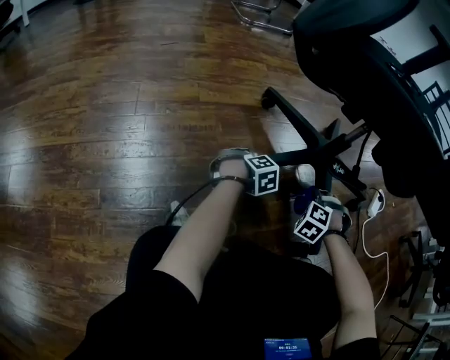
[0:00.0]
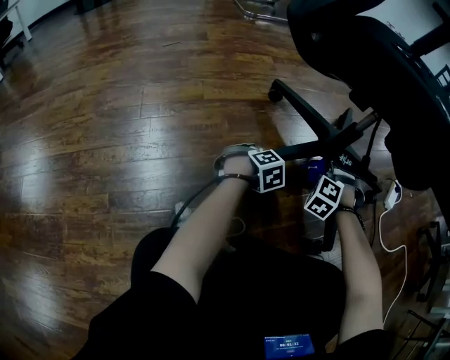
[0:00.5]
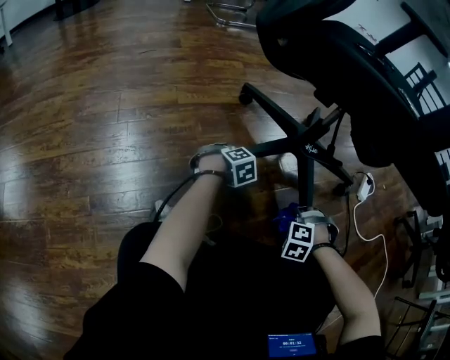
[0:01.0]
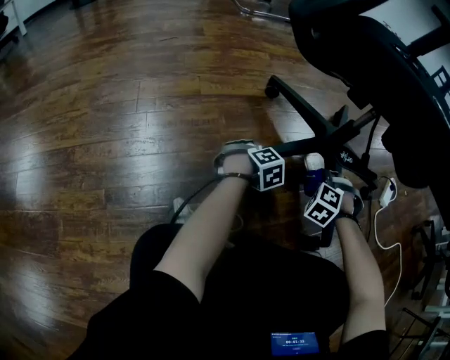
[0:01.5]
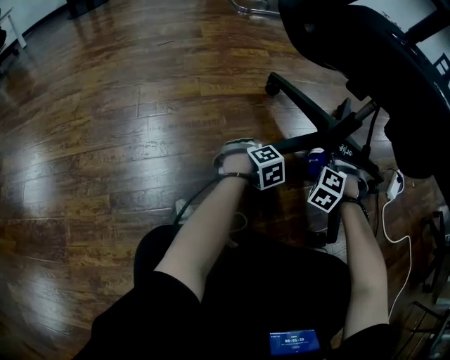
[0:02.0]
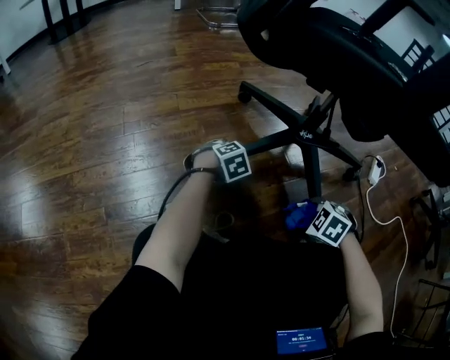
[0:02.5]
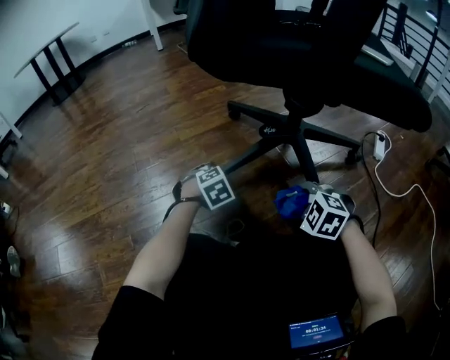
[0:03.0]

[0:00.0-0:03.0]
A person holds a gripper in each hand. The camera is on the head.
0:01.5 to 0:03.0: The right gripper shifts by approximately 20 cm, and turns by about 40 degrees.

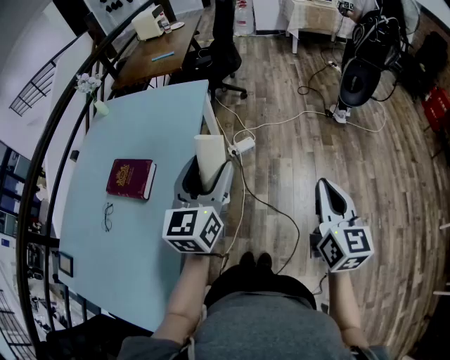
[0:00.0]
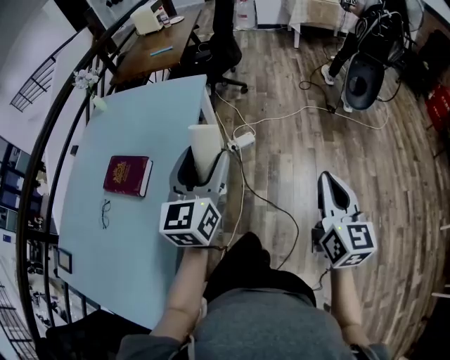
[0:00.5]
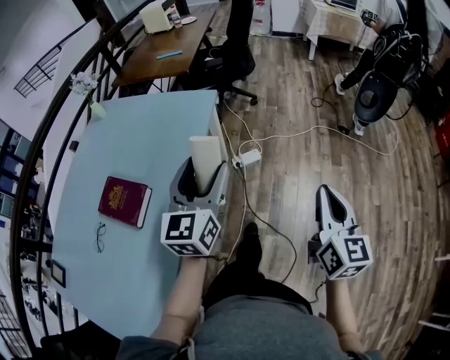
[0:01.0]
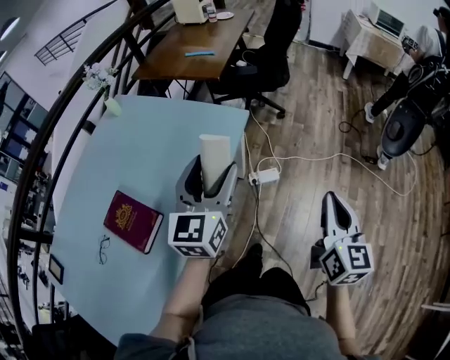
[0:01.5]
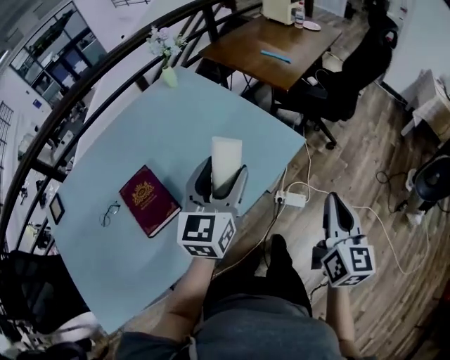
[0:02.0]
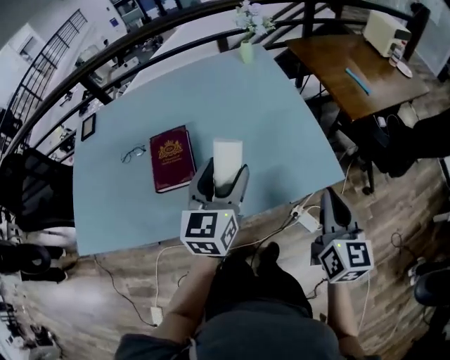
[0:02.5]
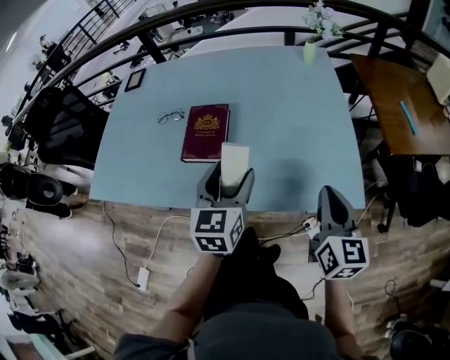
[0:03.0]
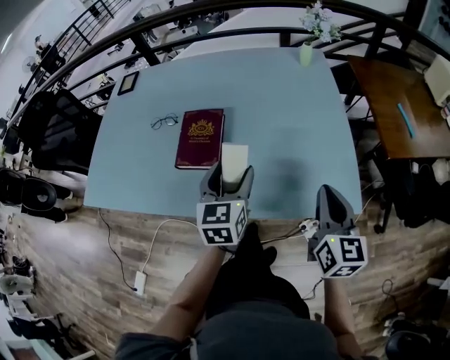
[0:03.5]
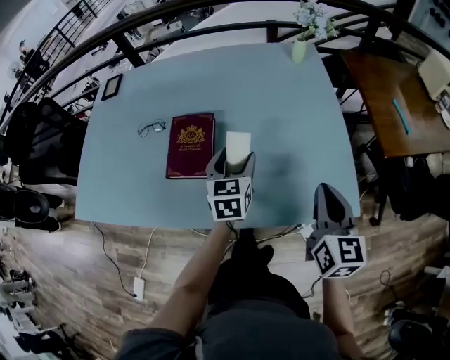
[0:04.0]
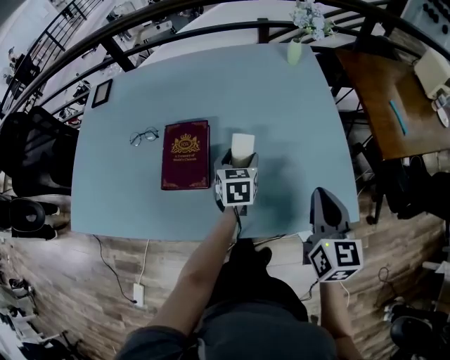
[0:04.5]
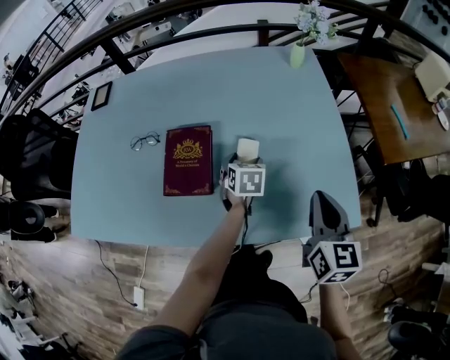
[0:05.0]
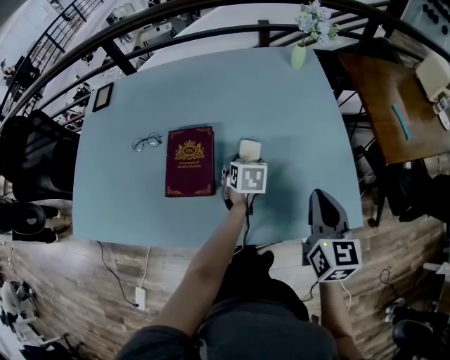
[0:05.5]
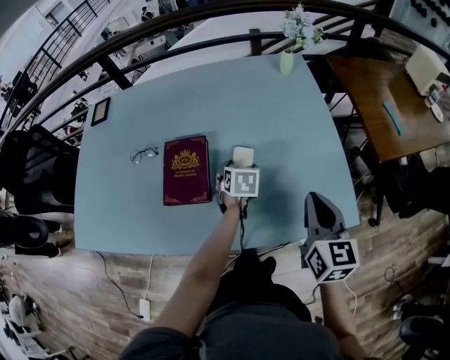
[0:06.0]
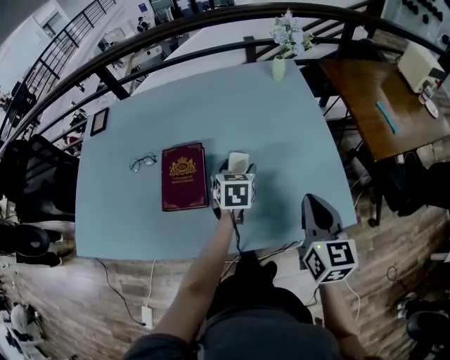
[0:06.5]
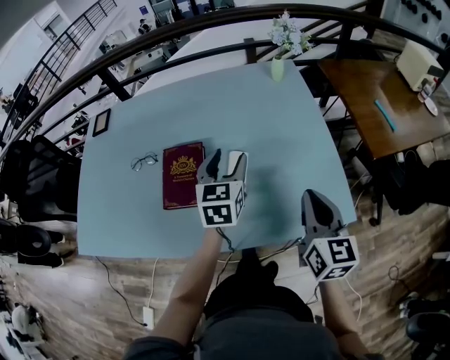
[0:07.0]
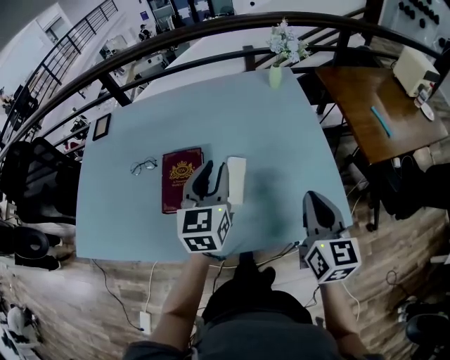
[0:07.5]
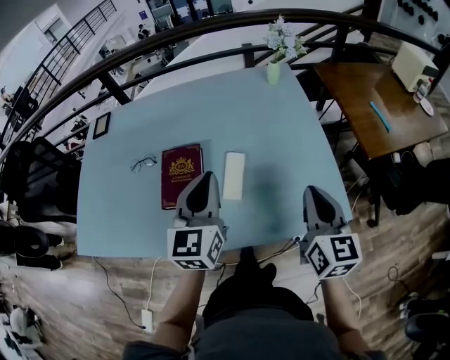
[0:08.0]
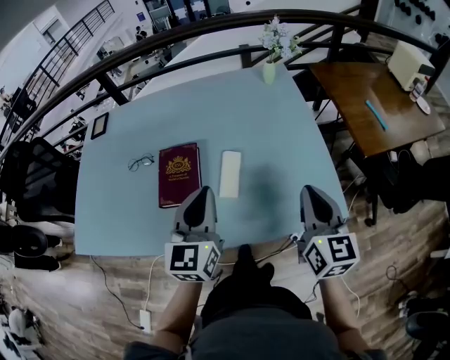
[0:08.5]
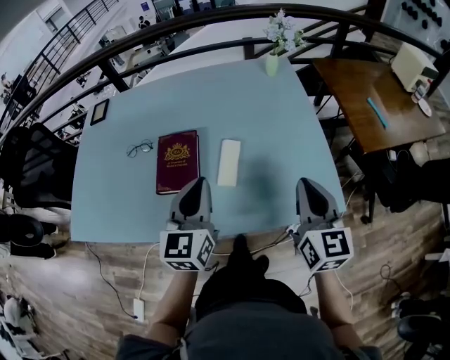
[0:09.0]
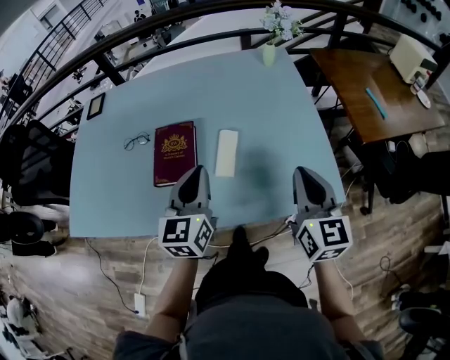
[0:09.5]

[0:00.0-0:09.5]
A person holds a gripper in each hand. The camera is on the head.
0:00.0 to 0:02.0: The right gripper changes place by approximately 50 cm, and turns by roughly 30 degrees, while the left gripper moves about 35 cm, and turns by about 40 degrees.
0:02.0 to 0:04.0: The left gripper shifts by approximately 20 cm, and rotates some 50 degrees. The right gripper changes place by some 25 cm, and changes its angle by roughly 50 degrees.
0:04.0 to 0:05.5: The left gripper moves downward and forward, approximately 15 cm, and rotates some 30 degrees.
0:05.5 to 0:07.5: The left gripper heads upward, covering some 25 cm, tilts its fingers some 40 degrees upward, and closes.
0:07.5 to 0:09.5: The left gripper travels backward by some 10 cm, and closes.

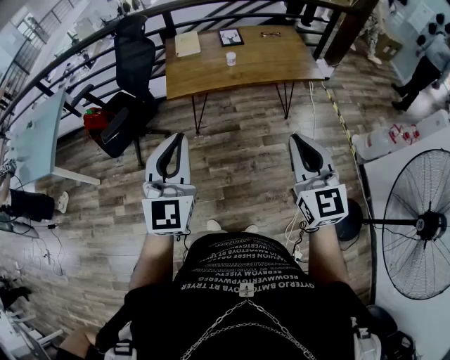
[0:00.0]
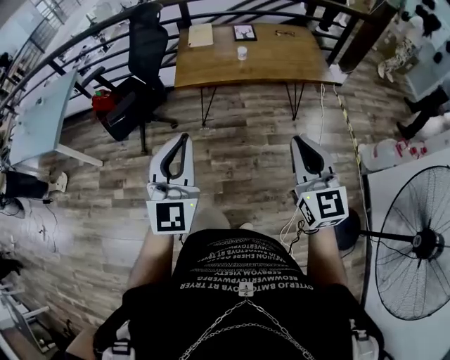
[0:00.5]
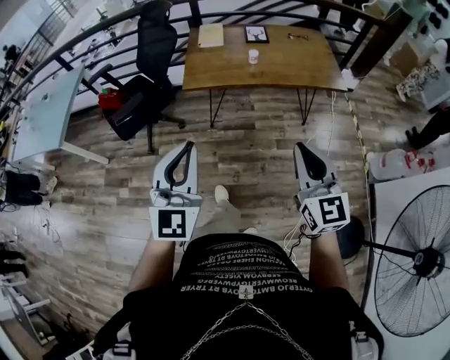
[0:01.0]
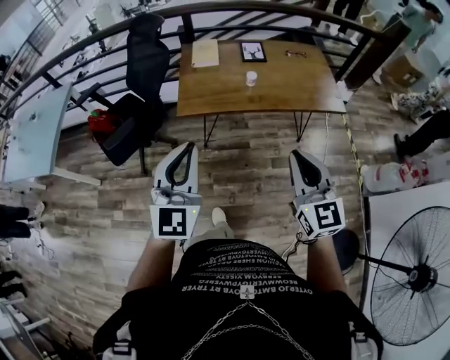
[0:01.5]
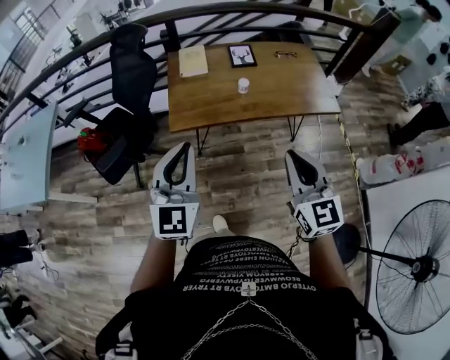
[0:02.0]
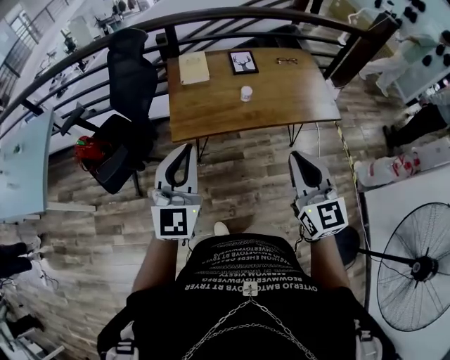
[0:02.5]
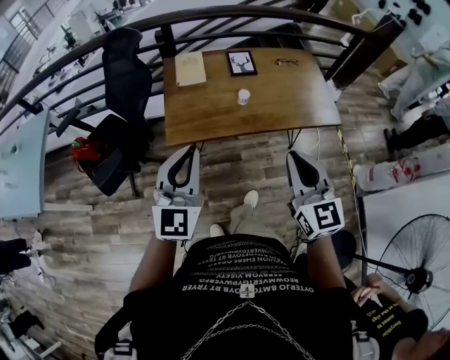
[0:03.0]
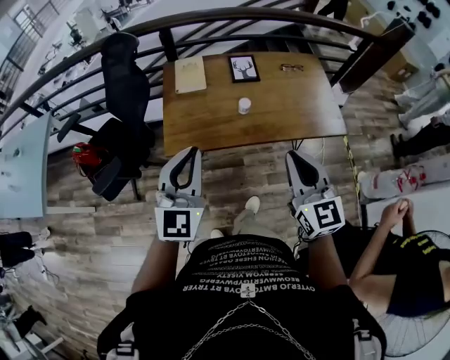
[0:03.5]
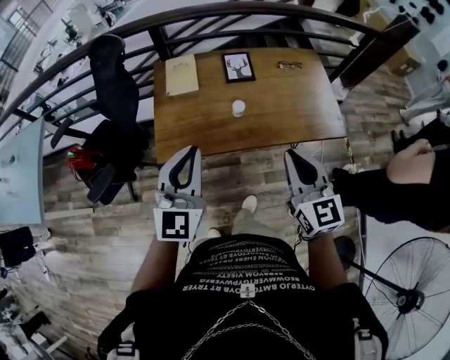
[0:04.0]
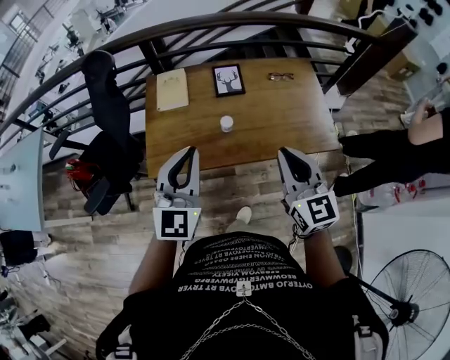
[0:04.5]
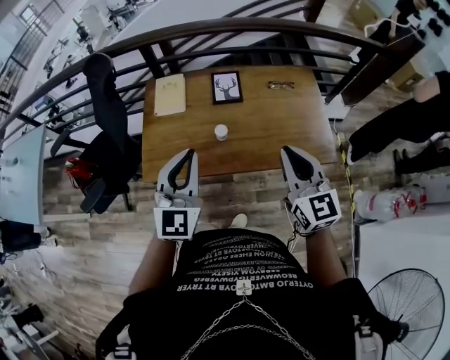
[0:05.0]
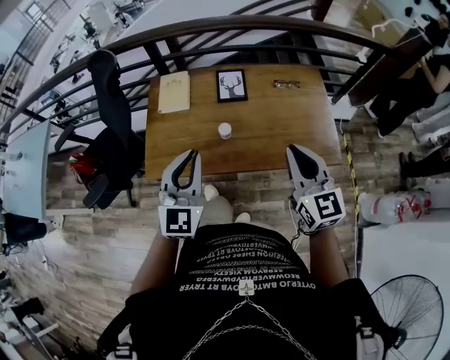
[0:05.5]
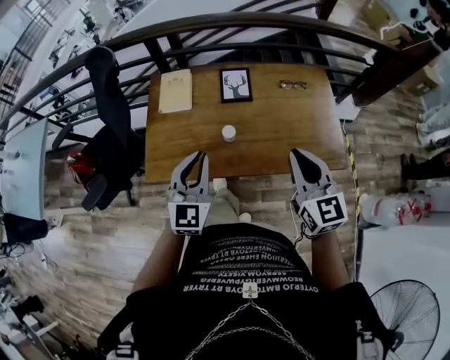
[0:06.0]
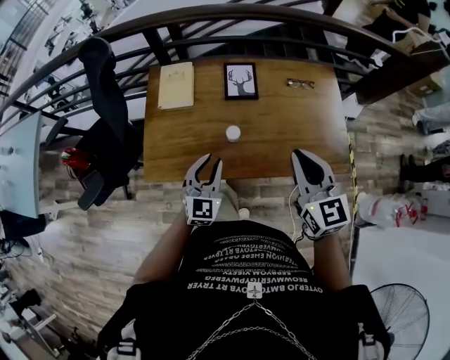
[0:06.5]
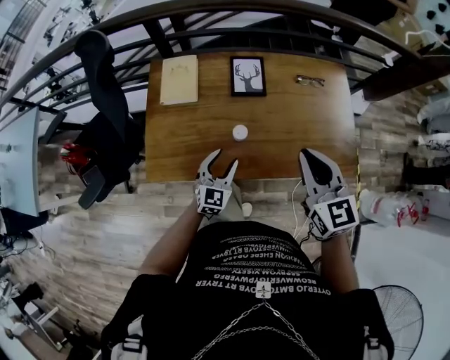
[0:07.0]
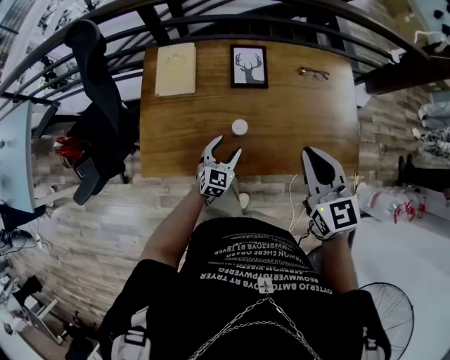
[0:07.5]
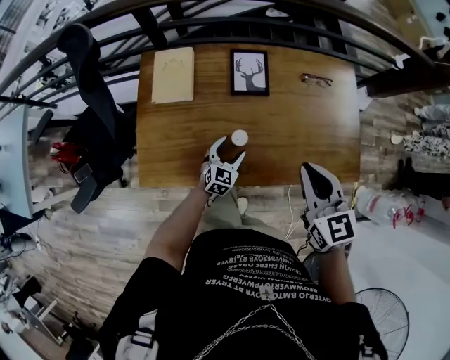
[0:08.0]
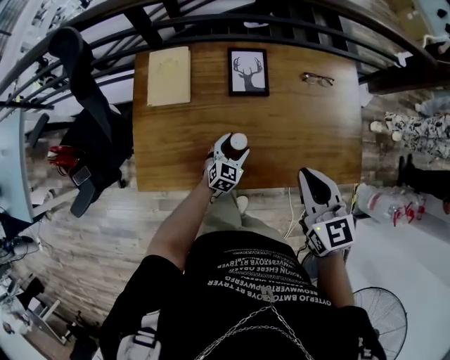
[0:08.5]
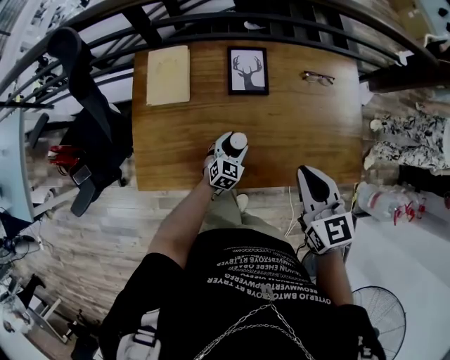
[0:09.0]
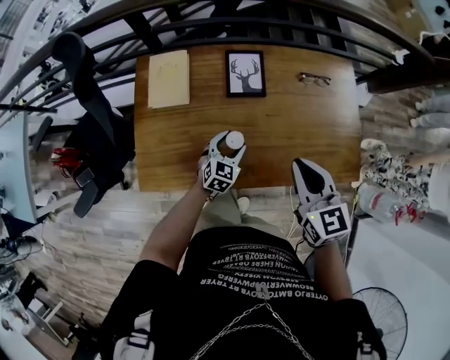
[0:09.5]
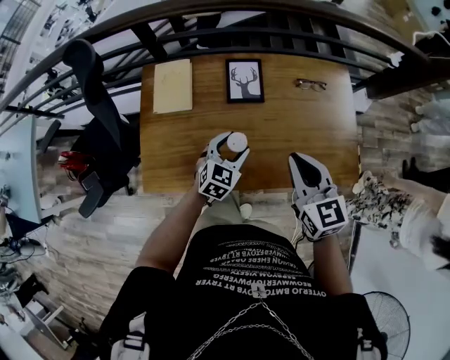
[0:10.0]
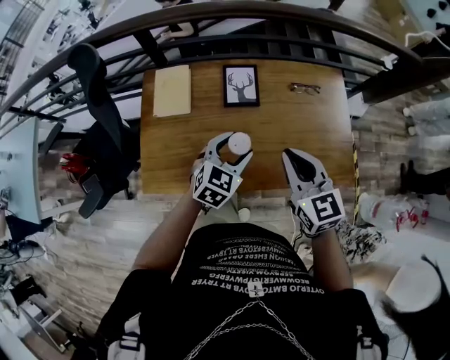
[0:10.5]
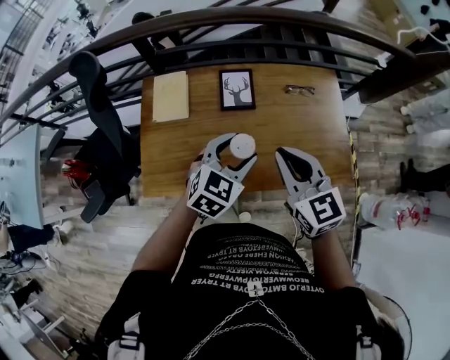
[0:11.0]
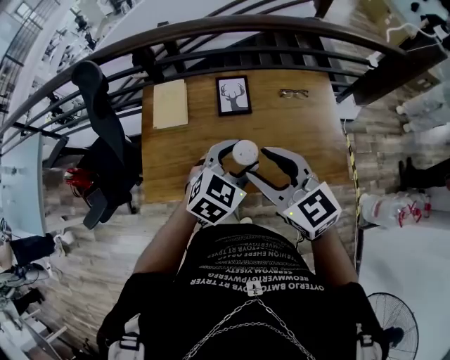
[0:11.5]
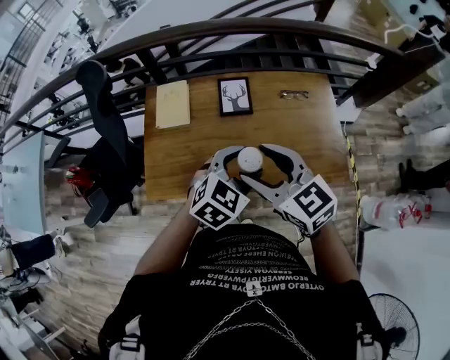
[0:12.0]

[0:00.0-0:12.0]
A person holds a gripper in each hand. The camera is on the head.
0:00.0 to 0:02.0: Both grippers move forward, roughly 20 cm.
0:02.0 to 0:04.0: The grippers both shift forward by some 20 cm.
0:04.0 to 0:06.0: The left gripper travels forward, to the right and downward by roughly 15 cm; the right gripper goes approximately 15 cm forward and to the right.
0:06.0 to 0:08.0: The left gripper is displaced downward by about 35 cm, turns by about 30 degrees, and opens up; the right gripper is displaced forward and downward by approximately 10 cm.
0:08.0 to 0:10.0: The left gripper goes approximately 15 cm upward.
0:10.0 to 0:12.0: The left gripper heads upward and backward, covering about 20 cm. Meanwhile the right gripper travels upward, to the left and backward by roughly 15 cm, turns by about 20 degrees, and opens.

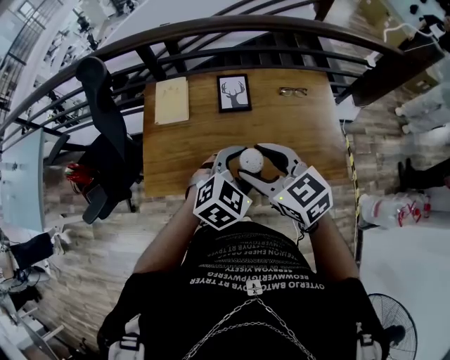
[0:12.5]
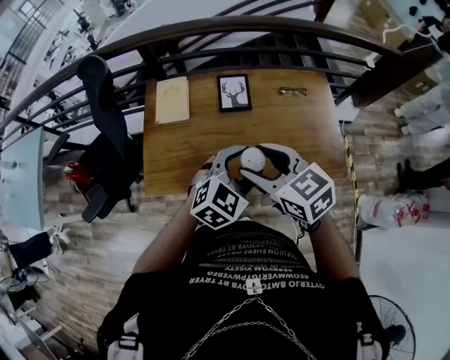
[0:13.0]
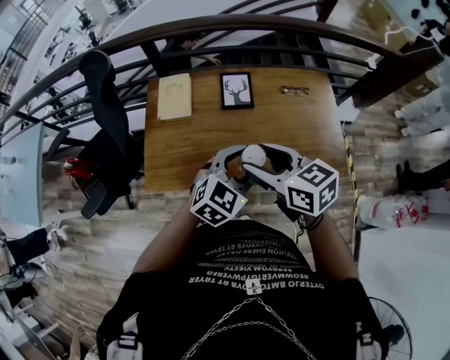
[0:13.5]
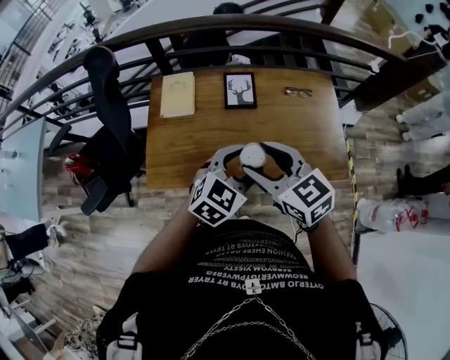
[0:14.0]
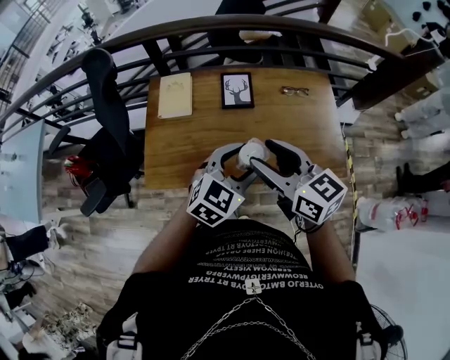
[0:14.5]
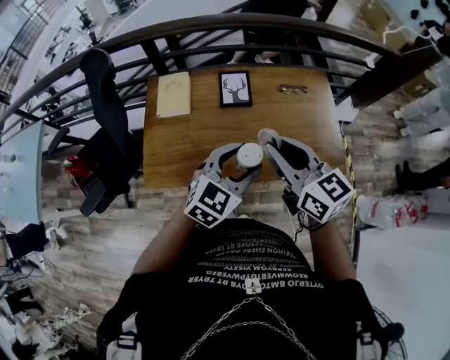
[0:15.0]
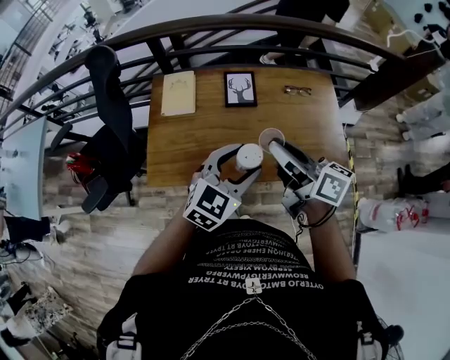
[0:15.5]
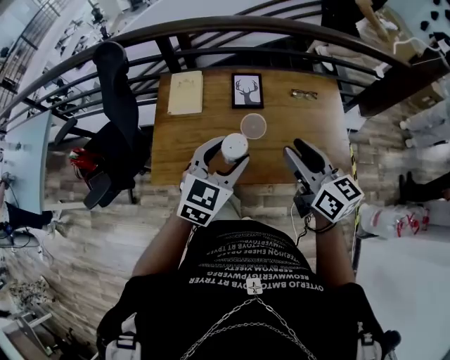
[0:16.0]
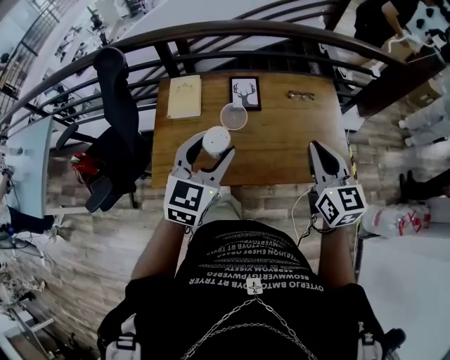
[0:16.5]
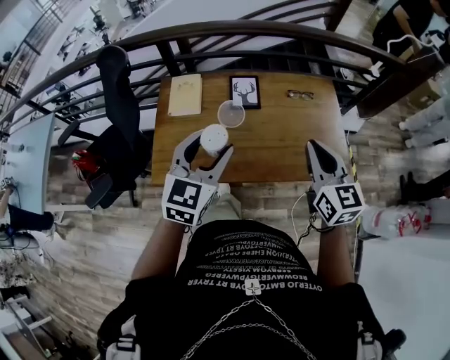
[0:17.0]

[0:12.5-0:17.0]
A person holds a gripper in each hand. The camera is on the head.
0:12.5 to 0:14.5: The right gripper rotates about 20 degrees.
0:14.5 to 0:17.0: The left gripper goes about 10 cm to the left and upward, and turns by roughly 20 degrees, while the right gripper heads to the right, covering roughly 10 cm, swivels some 30 degrees, and closes.
